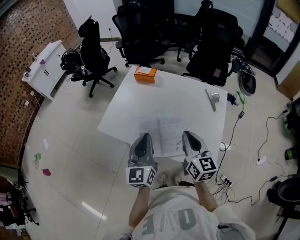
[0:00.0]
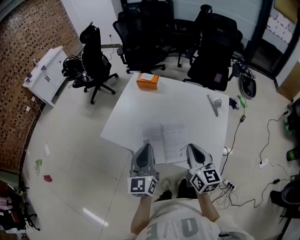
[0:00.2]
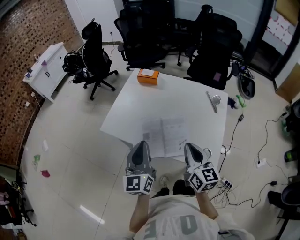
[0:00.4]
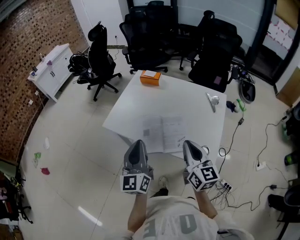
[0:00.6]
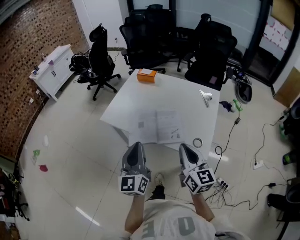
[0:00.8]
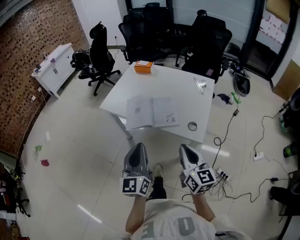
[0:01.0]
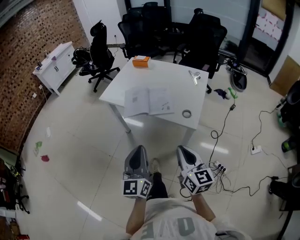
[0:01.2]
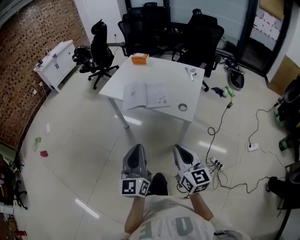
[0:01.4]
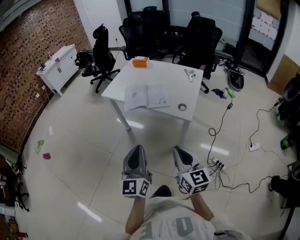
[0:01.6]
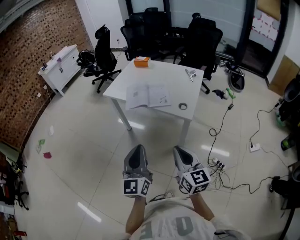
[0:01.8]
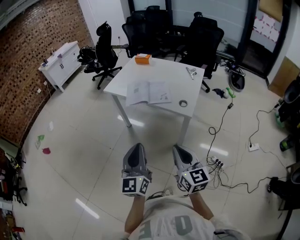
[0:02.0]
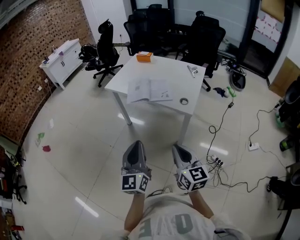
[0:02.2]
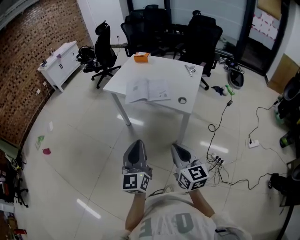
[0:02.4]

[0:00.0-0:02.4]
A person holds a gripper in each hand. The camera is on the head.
0.0 to 1.2 s: The two grippers go some 35 cm backward.
1.2 to 2.4 s: Both grippers travel together backward, approximately 10 cm.

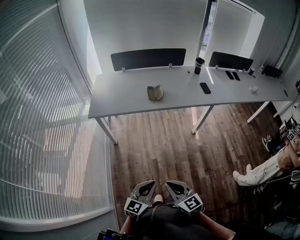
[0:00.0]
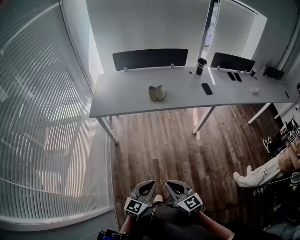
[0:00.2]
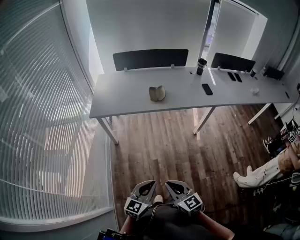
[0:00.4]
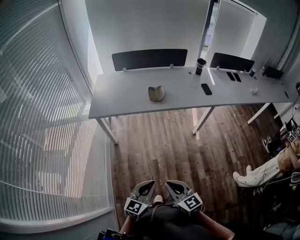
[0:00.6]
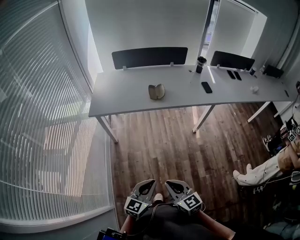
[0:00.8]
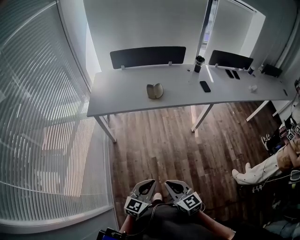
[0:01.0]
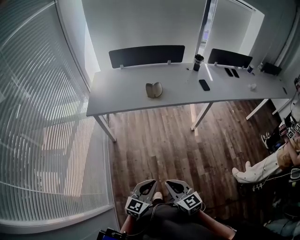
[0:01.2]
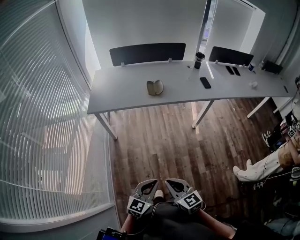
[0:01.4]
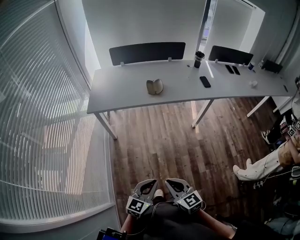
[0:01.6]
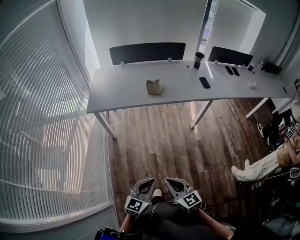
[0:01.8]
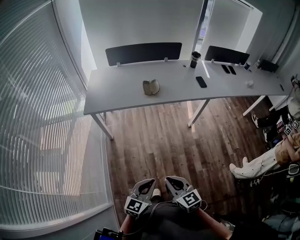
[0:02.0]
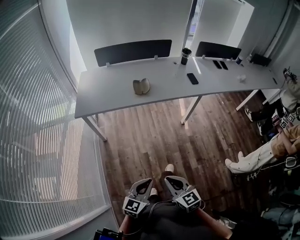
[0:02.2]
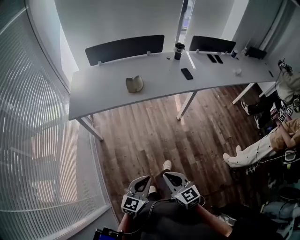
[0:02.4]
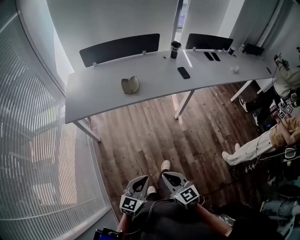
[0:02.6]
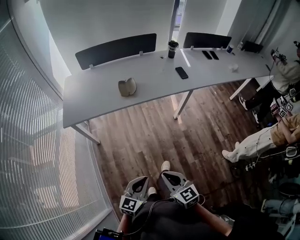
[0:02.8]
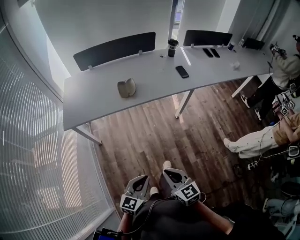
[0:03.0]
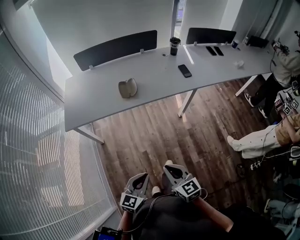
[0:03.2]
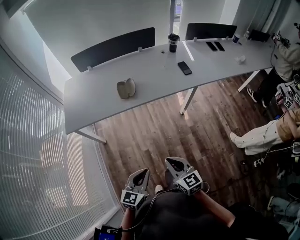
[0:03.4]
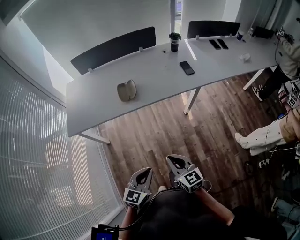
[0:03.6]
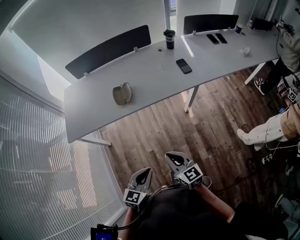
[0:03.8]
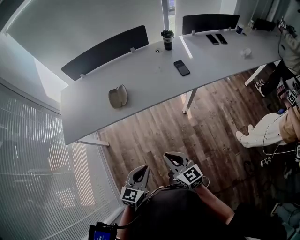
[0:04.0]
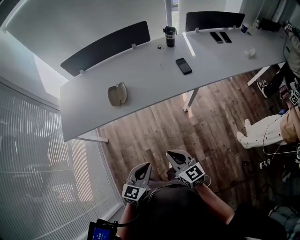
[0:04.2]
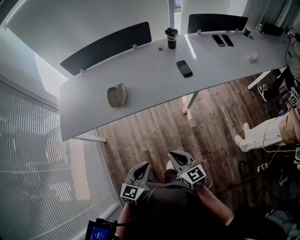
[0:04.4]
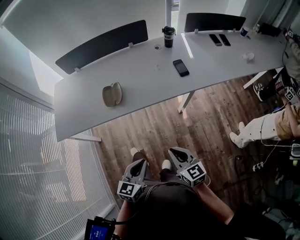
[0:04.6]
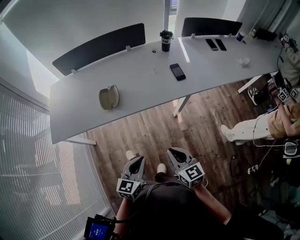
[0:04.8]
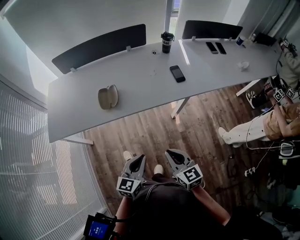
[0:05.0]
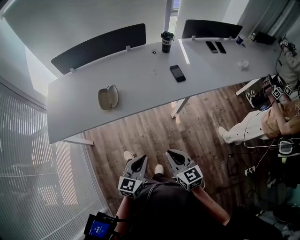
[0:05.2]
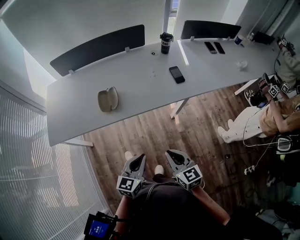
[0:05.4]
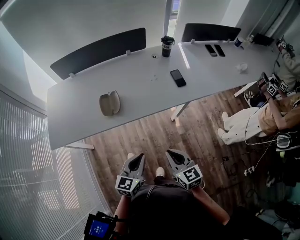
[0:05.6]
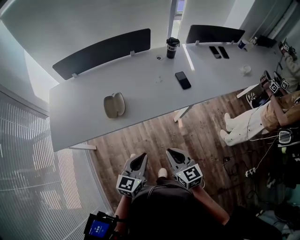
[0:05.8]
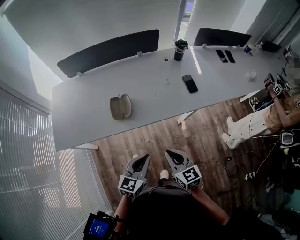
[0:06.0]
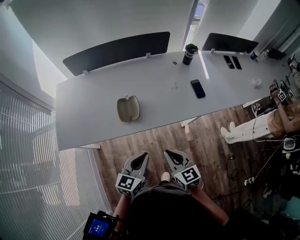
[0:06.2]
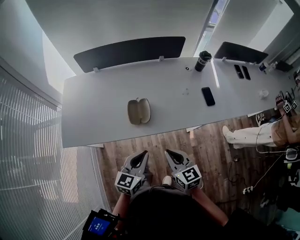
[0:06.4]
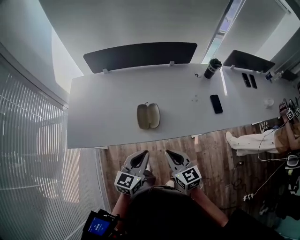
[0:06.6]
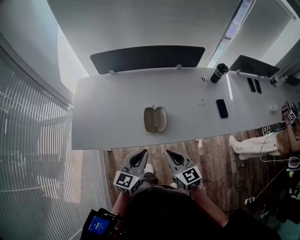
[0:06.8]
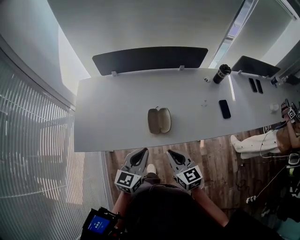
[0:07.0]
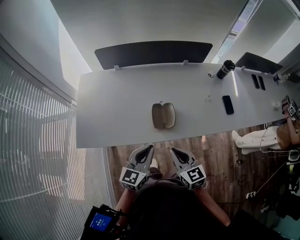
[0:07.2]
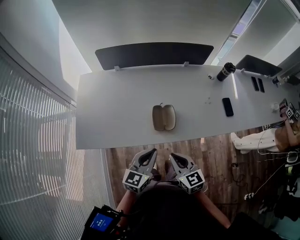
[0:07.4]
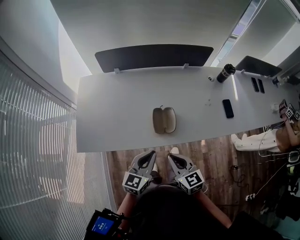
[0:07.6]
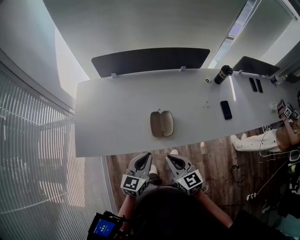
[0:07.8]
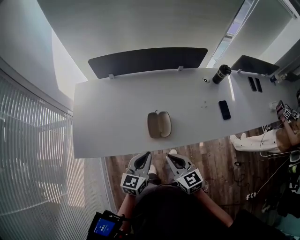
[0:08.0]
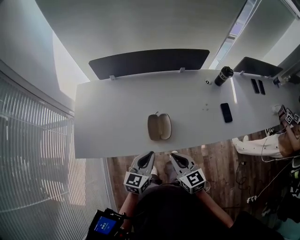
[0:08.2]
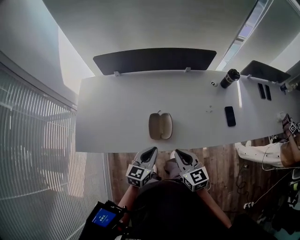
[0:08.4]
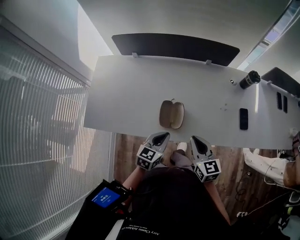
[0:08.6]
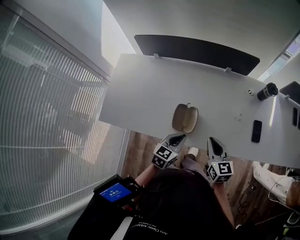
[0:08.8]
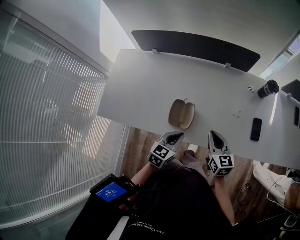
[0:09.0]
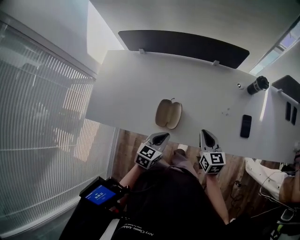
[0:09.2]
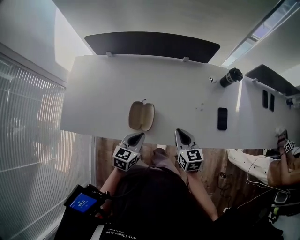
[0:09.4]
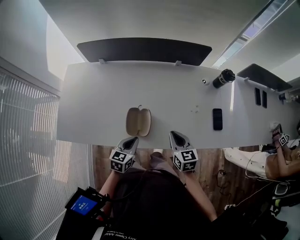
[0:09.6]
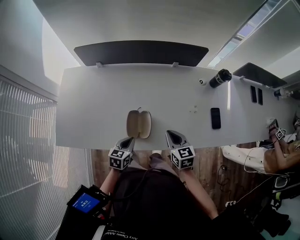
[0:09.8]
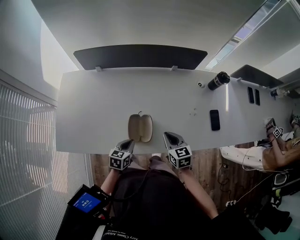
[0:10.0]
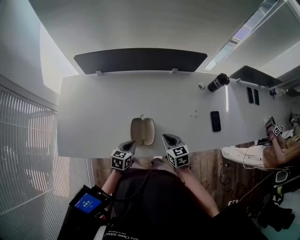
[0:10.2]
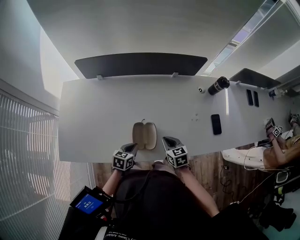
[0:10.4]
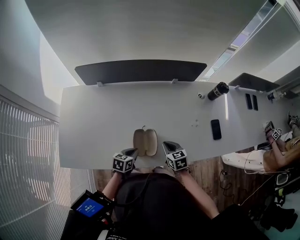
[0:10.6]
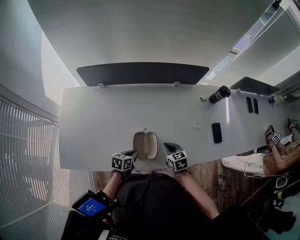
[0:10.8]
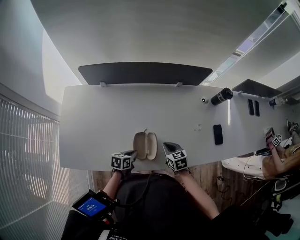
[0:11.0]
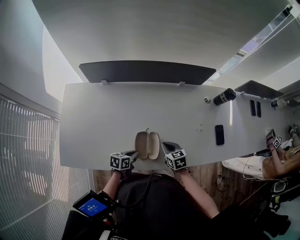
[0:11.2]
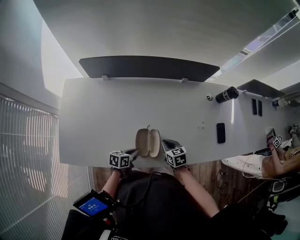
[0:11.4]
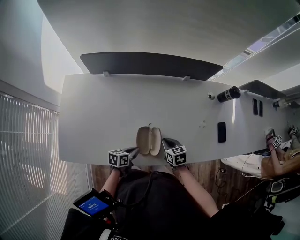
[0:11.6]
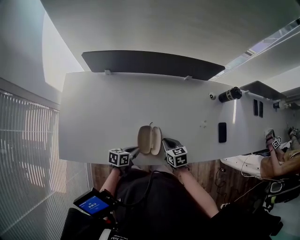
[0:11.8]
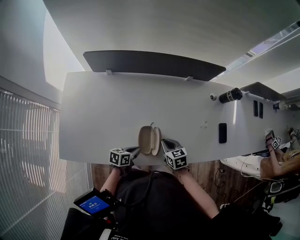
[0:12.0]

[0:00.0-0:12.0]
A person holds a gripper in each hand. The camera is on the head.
0.0 to 1.6 s: The grippers move only a little.
1.6 to 3.0 s: The right gripper travels forward and to the right by about 15 cm, while the left gripper heads forward, covering approximately 10 cm.
3.0 to 4.4 s: The two grippers go some 25 cm forward and to the right.
4.4 to 6.0 s: The left gripper goes roughly 15 cm forward. Meanwhile the right gripper is displaced forward and to the left by some 15 cm.
6.0 to 7.6 s: The two grippers go approximately 25 cm to the left and forward.
7.6 to 9.0 s: The right gripper travels to the right and forward by roughly 25 cm, while the left gripper shifts approximately 15 cm to the right, downward and forward.
9.0 to 10.4 s: The left gripper heads downward, to the left and forward, covering about 15 cm, while the right gripper heads downward and to the left, covering some 10 cm, and rotates approximately 20 degrees.
10.4 to 12.0 s: The left gripper moves about 5 cm, and rotates about 20 degrees, while the right gripper heads to the left, covering roughly 5 cm.

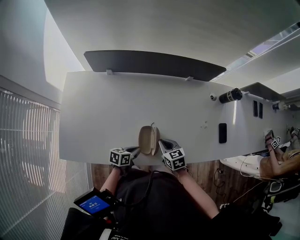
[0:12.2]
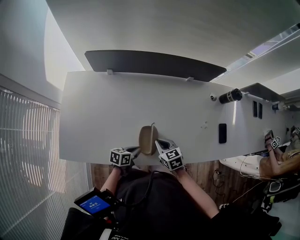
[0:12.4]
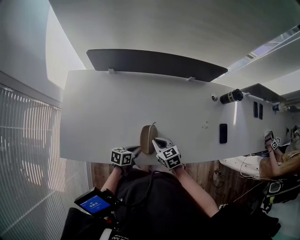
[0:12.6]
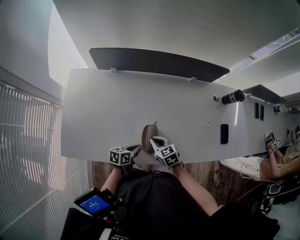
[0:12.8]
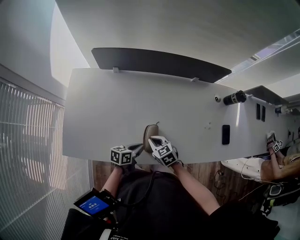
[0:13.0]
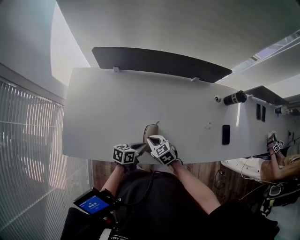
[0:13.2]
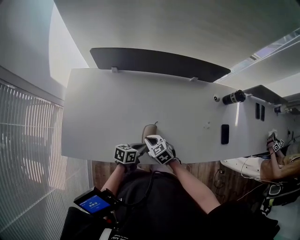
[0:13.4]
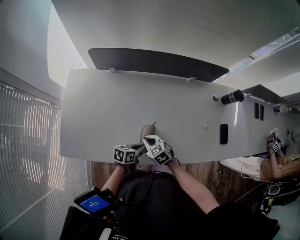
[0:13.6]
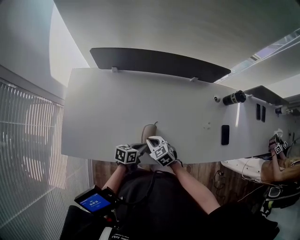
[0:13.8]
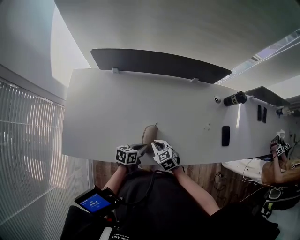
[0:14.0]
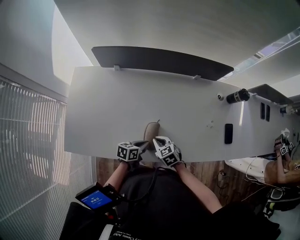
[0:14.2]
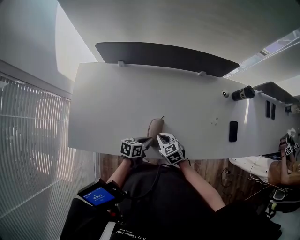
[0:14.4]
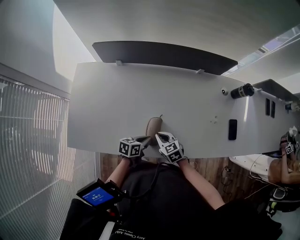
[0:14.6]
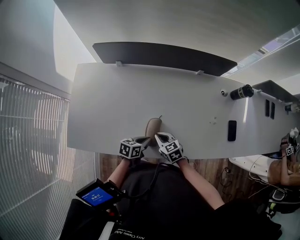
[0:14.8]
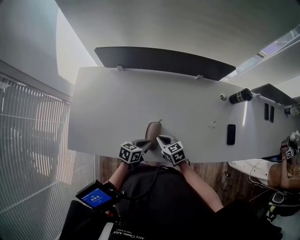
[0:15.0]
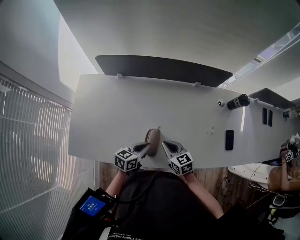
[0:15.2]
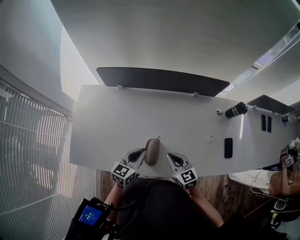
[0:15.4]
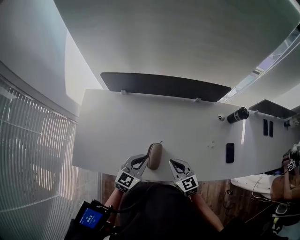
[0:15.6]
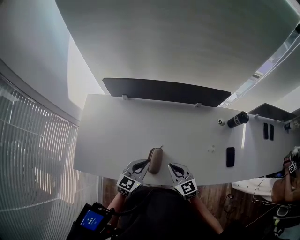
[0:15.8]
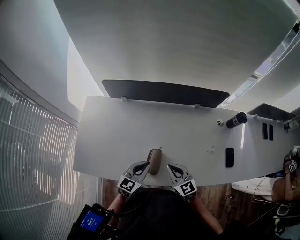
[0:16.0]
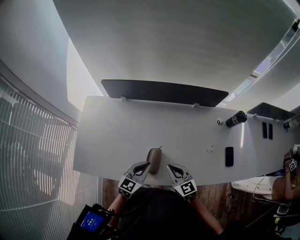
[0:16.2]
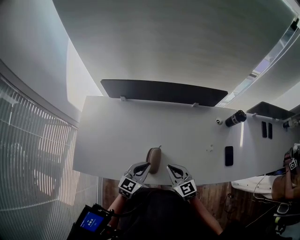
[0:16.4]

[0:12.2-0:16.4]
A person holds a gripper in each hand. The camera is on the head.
12.2 to 13.6 s: The right gripper is displaced to the left by some 10 cm, and changes its angle by some 20 degrees.
13.6 to 15.0 s: The right gripper heads to the right, covering roughly 5 cm.
15.0 to 16.4 s: The grippers both shift upward by roughly 15 cm. The right gripper turns by some 30 degrees, while the left gripper turns by about 40 degrees.

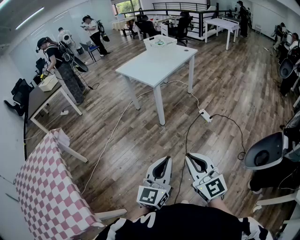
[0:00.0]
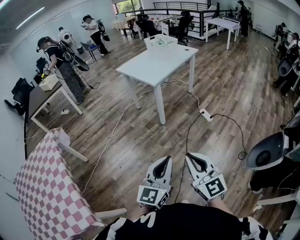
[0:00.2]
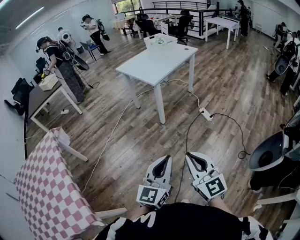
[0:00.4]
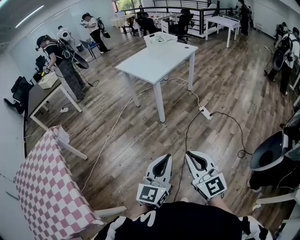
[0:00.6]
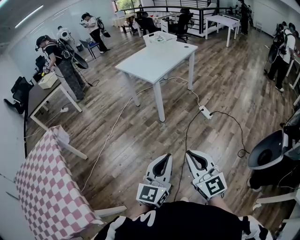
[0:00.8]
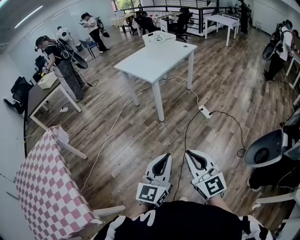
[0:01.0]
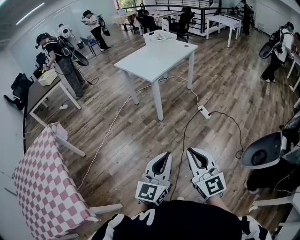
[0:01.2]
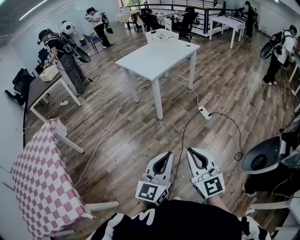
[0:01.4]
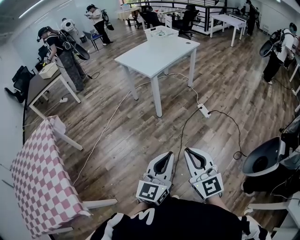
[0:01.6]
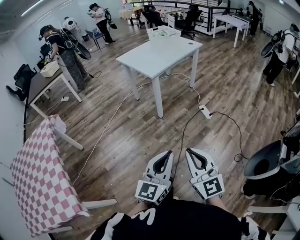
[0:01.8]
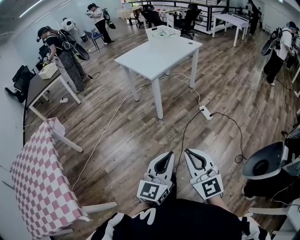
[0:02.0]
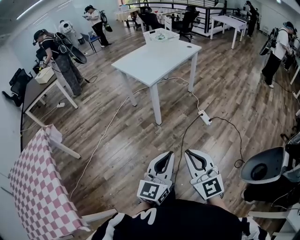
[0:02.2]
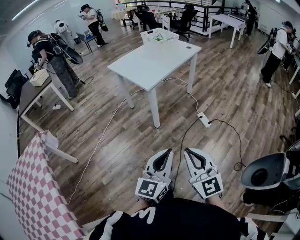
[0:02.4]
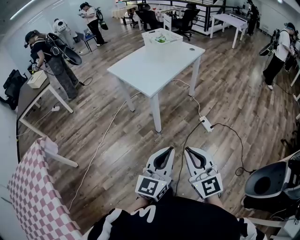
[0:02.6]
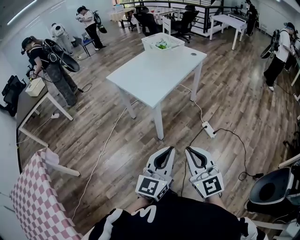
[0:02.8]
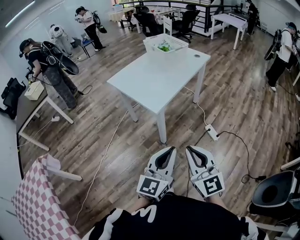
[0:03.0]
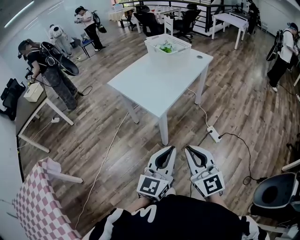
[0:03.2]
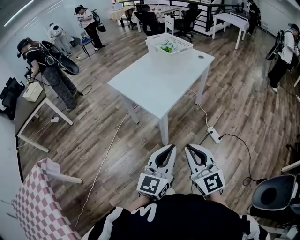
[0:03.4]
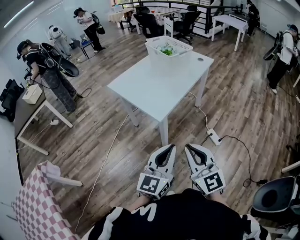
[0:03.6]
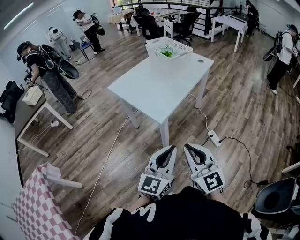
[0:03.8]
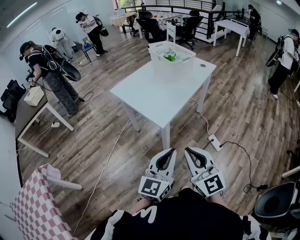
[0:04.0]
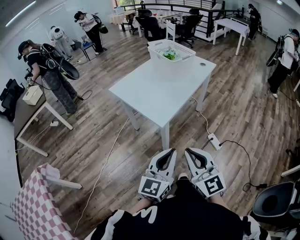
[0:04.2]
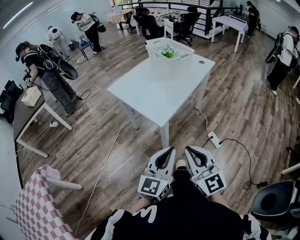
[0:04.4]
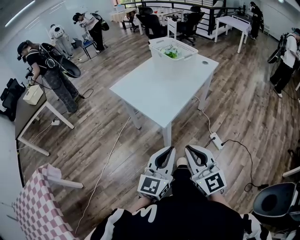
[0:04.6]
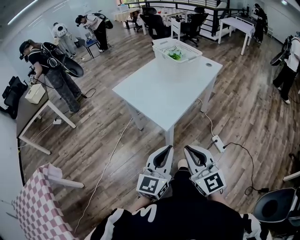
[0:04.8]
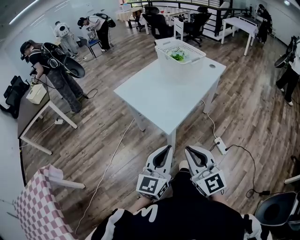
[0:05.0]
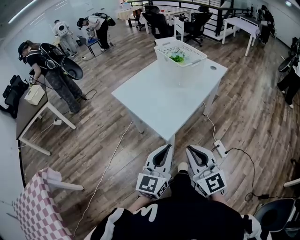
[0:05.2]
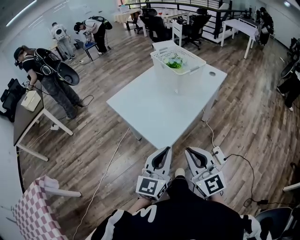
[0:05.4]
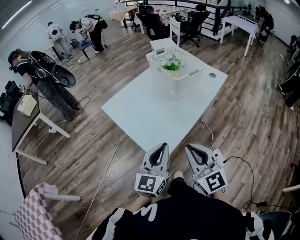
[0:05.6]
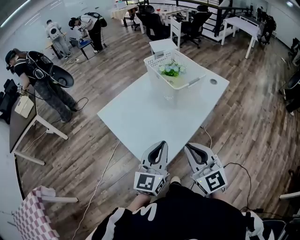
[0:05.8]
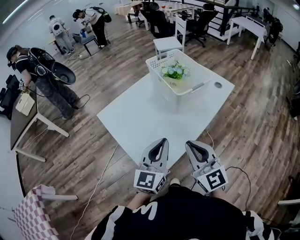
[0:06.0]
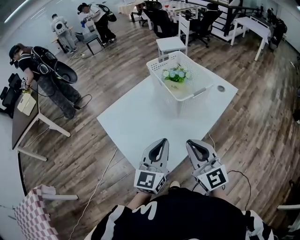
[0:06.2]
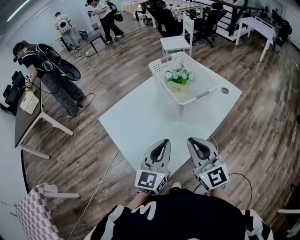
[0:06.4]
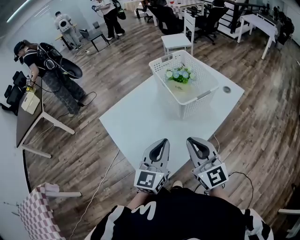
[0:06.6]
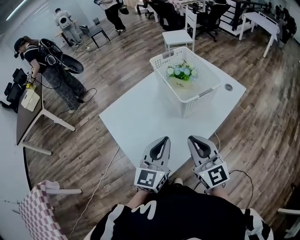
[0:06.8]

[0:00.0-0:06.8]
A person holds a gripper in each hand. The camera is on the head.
0.0 to 1.4 s: The left gripper travels to the right by some 5 cm.
1.4 to 2.8 s: The two grippers go approximately 35 cm forward.
2.8 to 4.0 s: The right gripper is displaced forward and to the left by approximately 15 cm; the left gripper shifts roughly 15 cm forward.
4.0 to 5.4 s: Both grippers move forward, approximately 20 cm.
5.4 to 6.8 s: The two grippers go some 25 cm forward.
